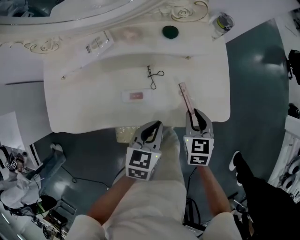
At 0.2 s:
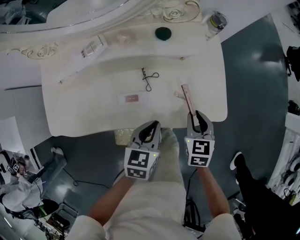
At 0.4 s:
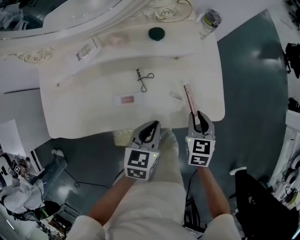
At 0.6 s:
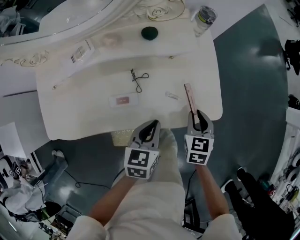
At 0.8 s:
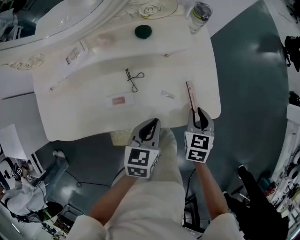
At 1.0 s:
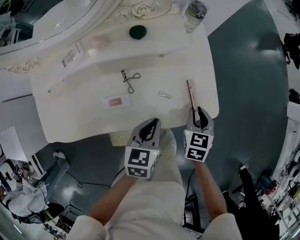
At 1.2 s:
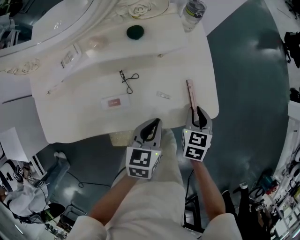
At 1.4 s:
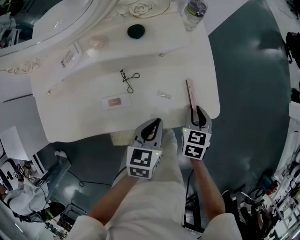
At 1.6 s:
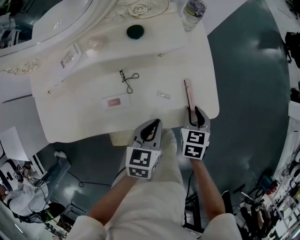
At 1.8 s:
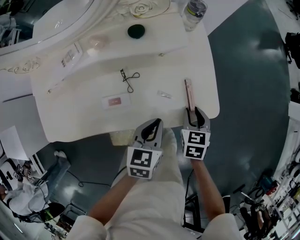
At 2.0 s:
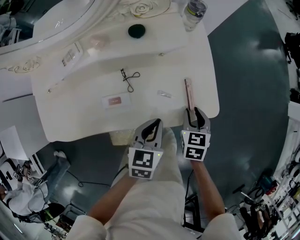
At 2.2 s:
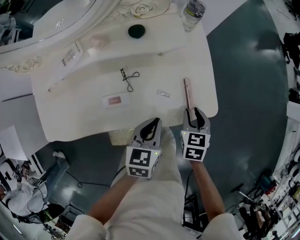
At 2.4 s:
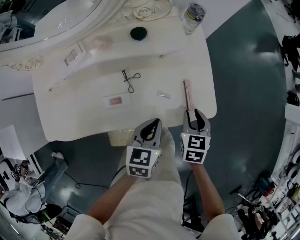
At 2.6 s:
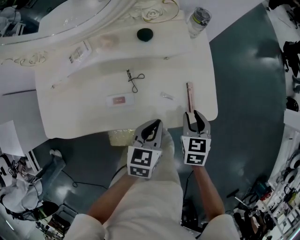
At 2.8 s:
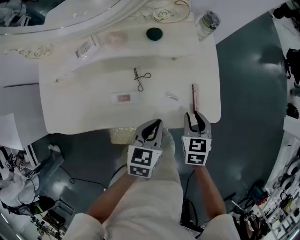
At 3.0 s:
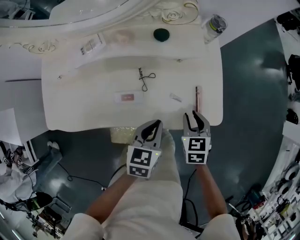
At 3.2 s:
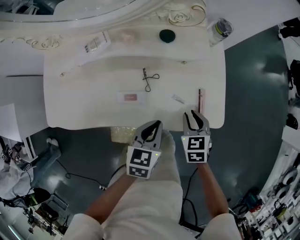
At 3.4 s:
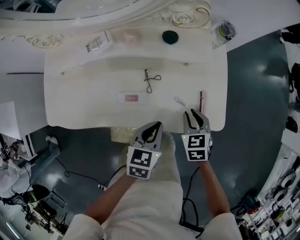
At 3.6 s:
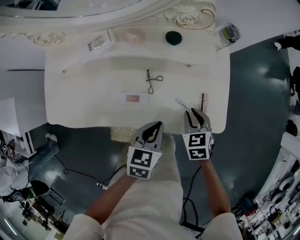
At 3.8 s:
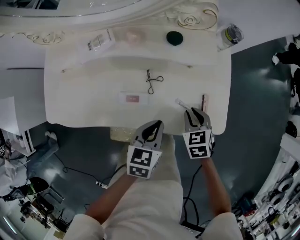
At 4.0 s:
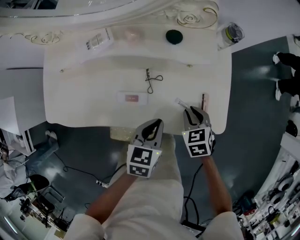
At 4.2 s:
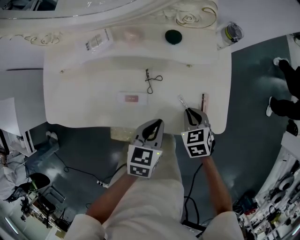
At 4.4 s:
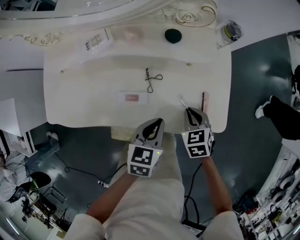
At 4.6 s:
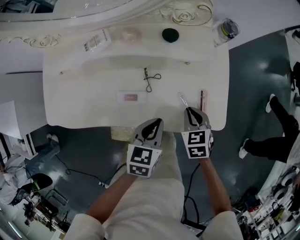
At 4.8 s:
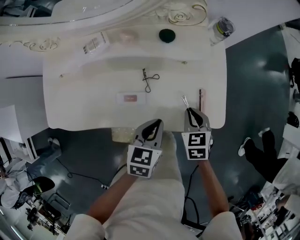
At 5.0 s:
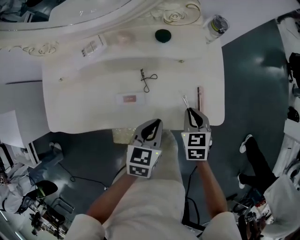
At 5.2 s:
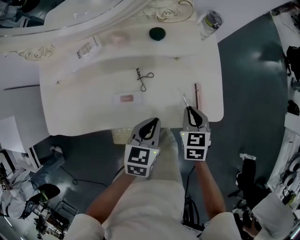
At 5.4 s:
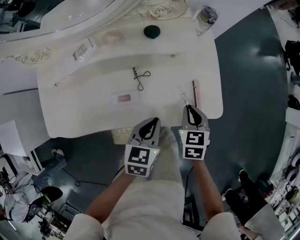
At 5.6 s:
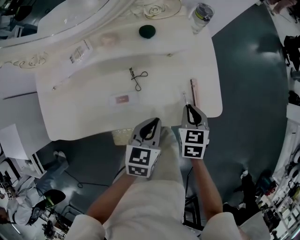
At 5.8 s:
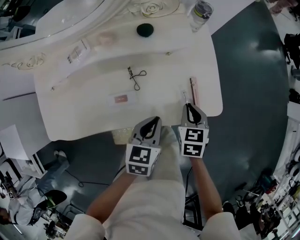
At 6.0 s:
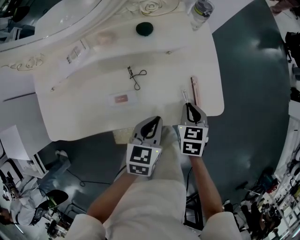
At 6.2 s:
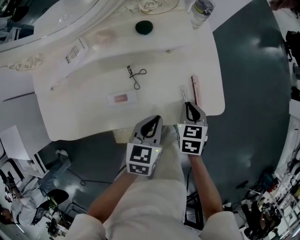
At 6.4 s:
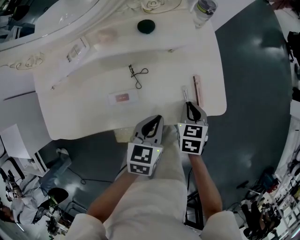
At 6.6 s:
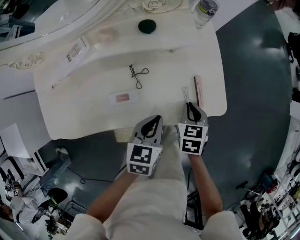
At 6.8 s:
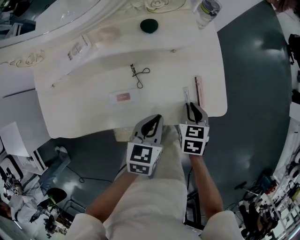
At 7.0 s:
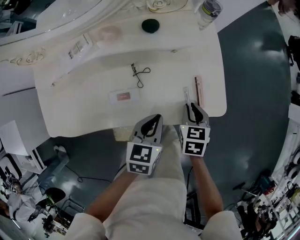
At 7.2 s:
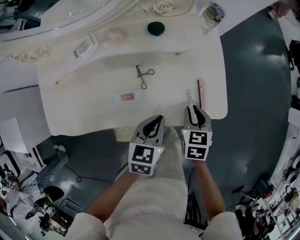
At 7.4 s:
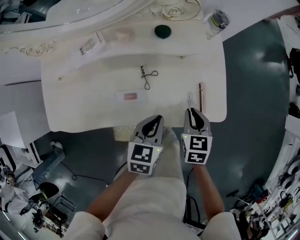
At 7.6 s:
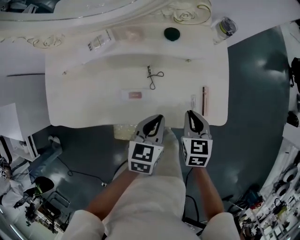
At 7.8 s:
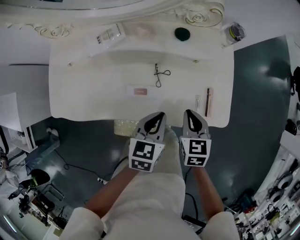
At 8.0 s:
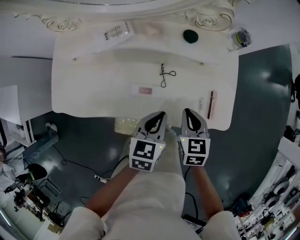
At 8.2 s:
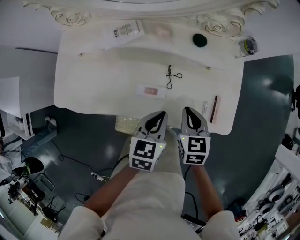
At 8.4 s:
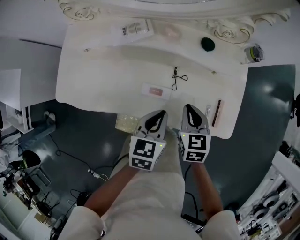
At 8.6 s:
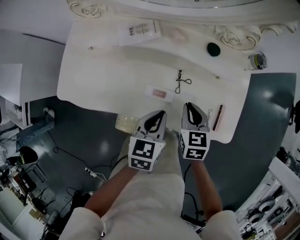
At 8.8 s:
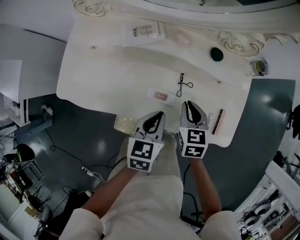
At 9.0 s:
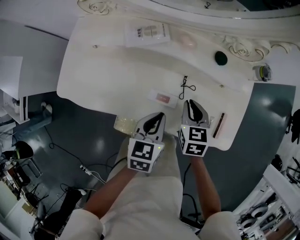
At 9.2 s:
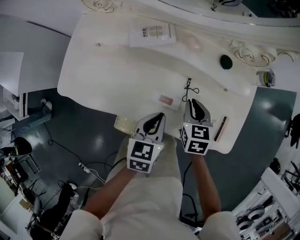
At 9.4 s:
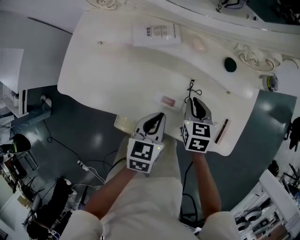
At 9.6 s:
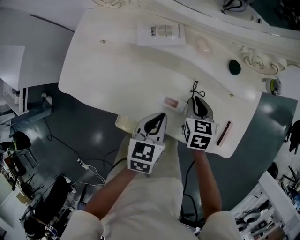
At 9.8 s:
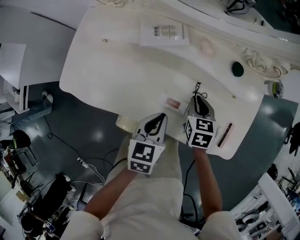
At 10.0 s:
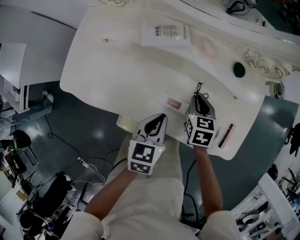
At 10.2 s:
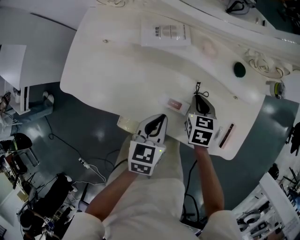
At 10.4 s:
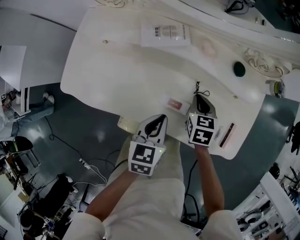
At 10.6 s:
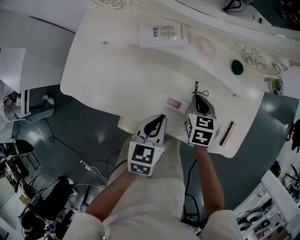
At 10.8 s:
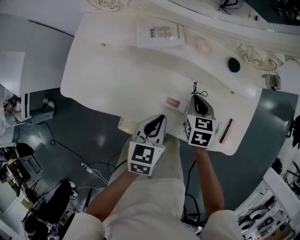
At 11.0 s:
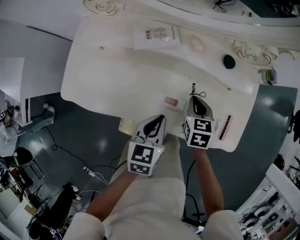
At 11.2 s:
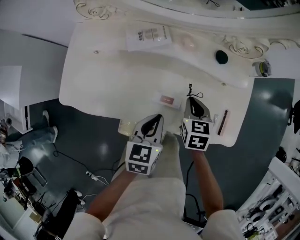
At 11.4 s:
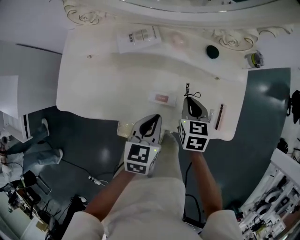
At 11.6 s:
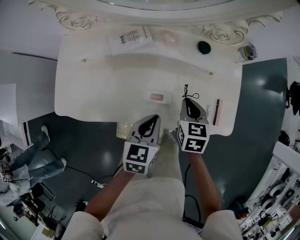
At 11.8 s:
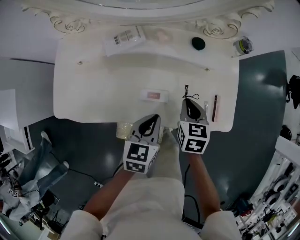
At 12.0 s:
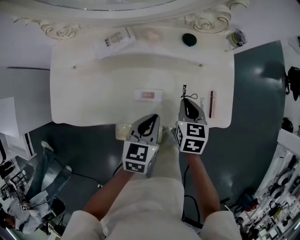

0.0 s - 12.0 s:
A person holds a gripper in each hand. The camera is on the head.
0.0 s - 1.6 s: The left gripper heads to the right, covering roughly 5 cm. The right gripper shifts about 10 cm to the right and downward.
1.6 s - 3.0 s: The right gripper travels to the left by roughly 5 cm.
3.0 s - 4.4 s: There are only small adjustments of the grippers.
4.4 s - 6.0 s: The right gripper changes its angle by about 30 degrees.
6.0 s - 7.6 s: The right gripper moves some 5 cm.
7.6 s - 9.0 s: The left gripper goes about 10 cm to the left. Meanwhile the right gripper is displaced to the left and forward by approximately 15 cm.
9.0 s - 10.4 s: The right gripper changes place by roughly 5 cm.
10.4 s - 12.0 s: The right gripper moves backward, to the right and upward, approximately 10 cm; the left gripper moves to the right, about 5 cm.

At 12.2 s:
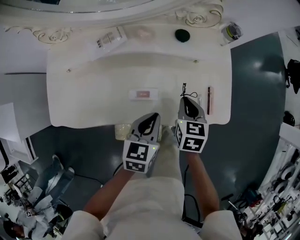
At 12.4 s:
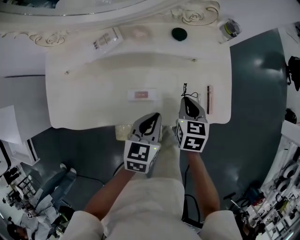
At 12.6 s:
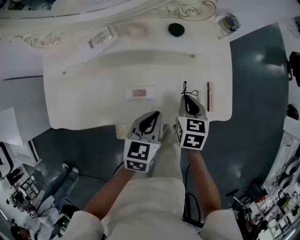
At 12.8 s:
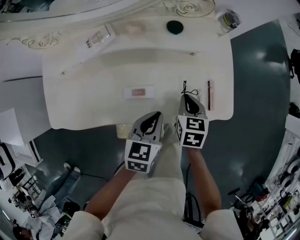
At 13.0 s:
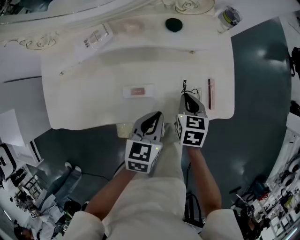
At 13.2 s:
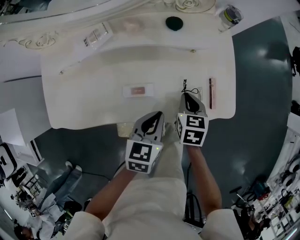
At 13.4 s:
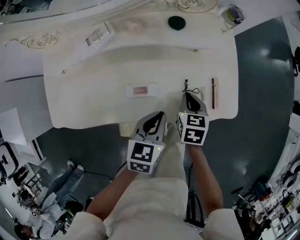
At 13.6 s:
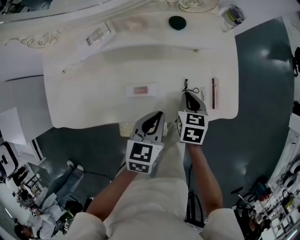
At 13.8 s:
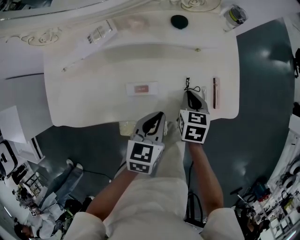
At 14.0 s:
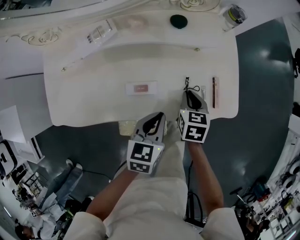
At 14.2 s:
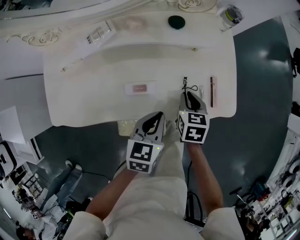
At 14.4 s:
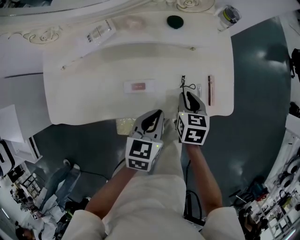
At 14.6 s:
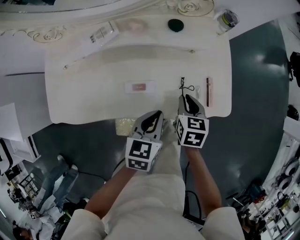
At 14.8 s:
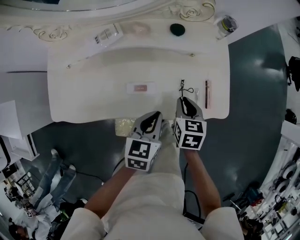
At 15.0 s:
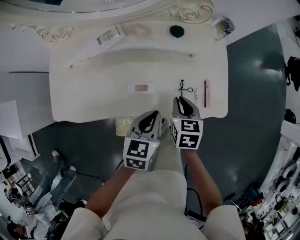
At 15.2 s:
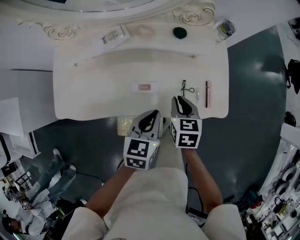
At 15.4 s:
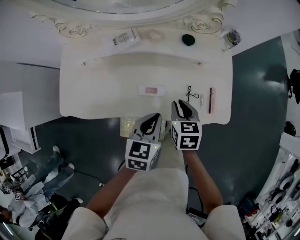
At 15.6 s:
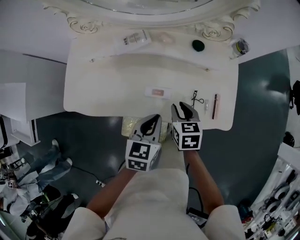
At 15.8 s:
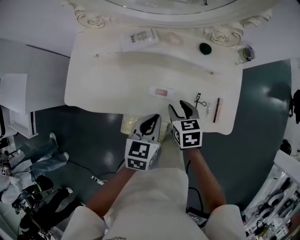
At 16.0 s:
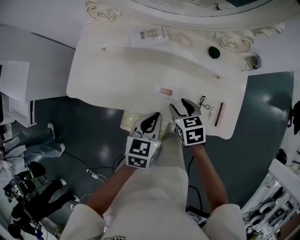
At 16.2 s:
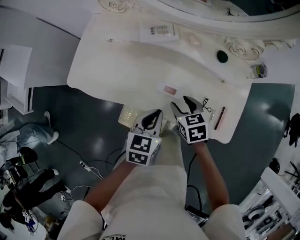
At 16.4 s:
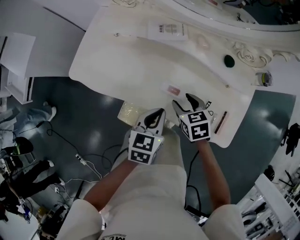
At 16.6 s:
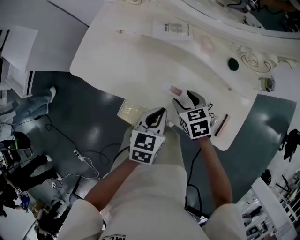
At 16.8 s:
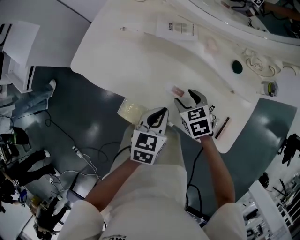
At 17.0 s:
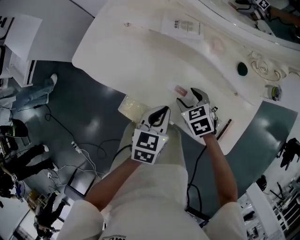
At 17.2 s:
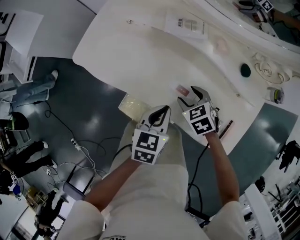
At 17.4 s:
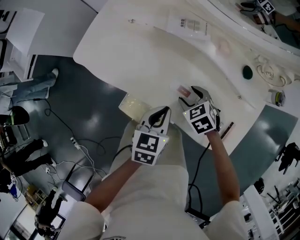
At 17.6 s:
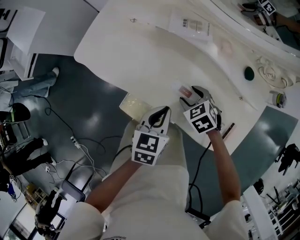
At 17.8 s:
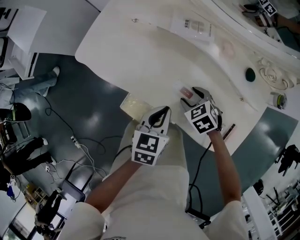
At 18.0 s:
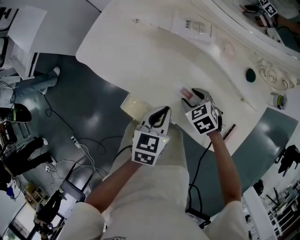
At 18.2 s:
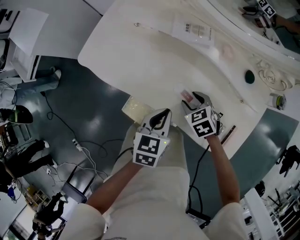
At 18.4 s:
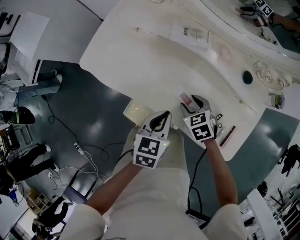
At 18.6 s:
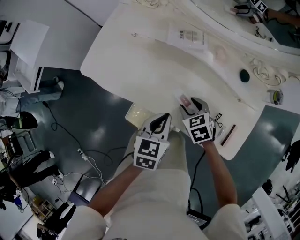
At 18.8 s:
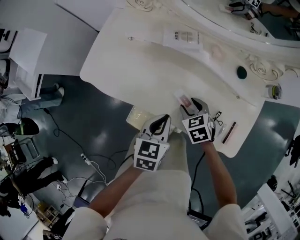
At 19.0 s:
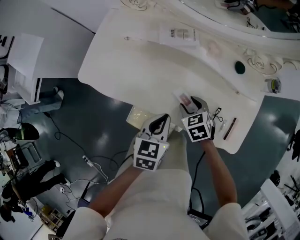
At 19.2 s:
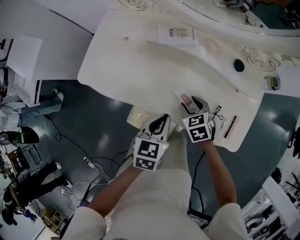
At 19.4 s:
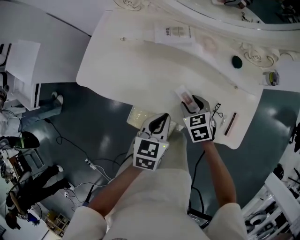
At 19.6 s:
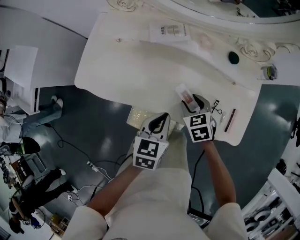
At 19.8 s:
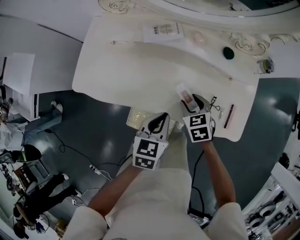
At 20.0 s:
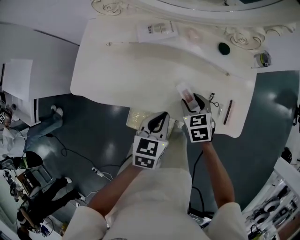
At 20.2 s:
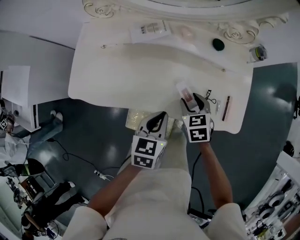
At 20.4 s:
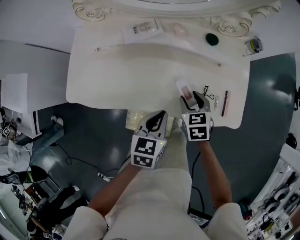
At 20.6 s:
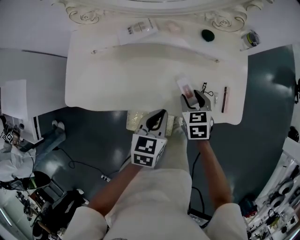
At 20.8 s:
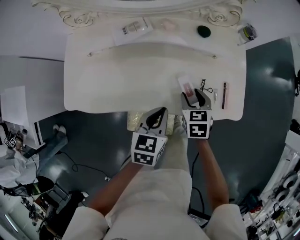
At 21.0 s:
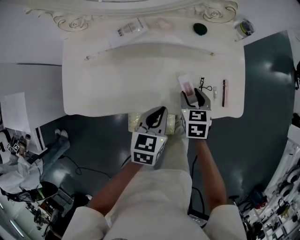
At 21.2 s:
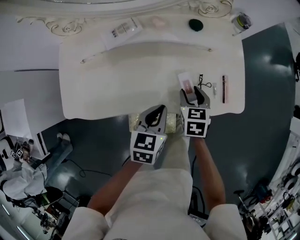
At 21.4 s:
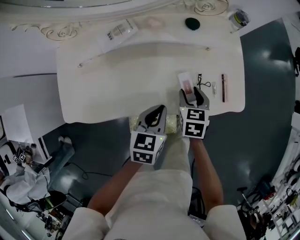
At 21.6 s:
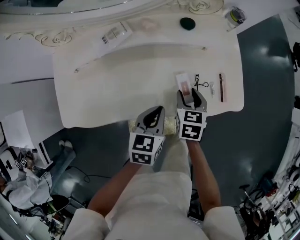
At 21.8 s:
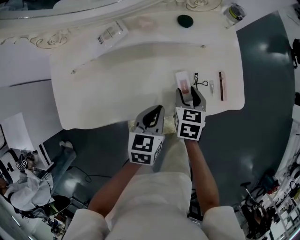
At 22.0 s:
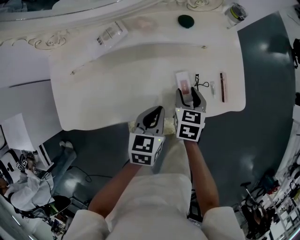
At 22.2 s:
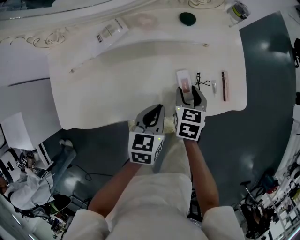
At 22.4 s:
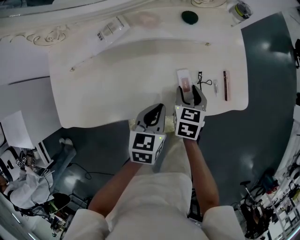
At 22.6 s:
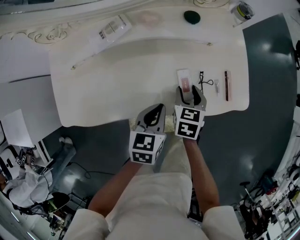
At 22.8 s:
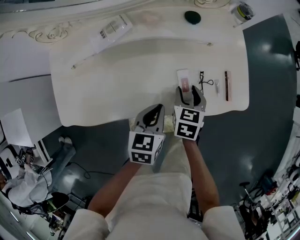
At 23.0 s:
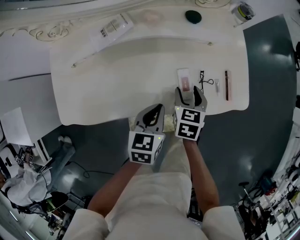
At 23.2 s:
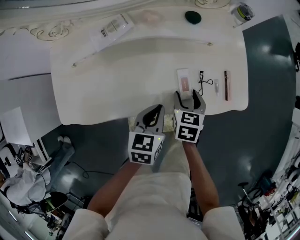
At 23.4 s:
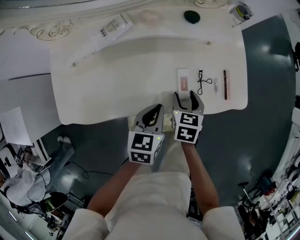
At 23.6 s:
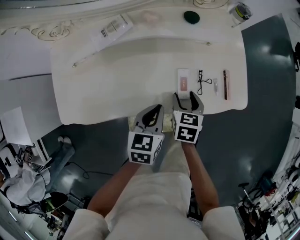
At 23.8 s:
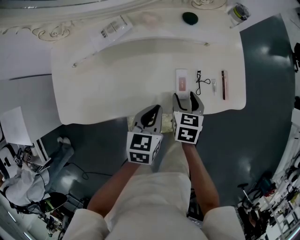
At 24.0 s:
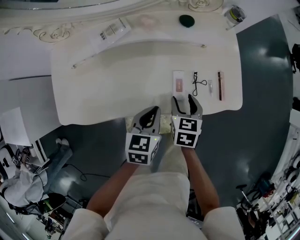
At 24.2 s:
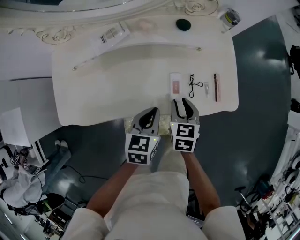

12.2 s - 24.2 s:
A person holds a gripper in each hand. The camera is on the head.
12.2 s - 13.8 s: The right gripper moves downward, approximately 5 cm.
13.8 s - 15.2 s: Both grippers travel together upward, some 5 cm.
15.2 s - 16.6 s: The left gripper changes place by roughly 10 cm, and swivels some 20 degrees, while the right gripper moves some 10 cm, rotates about 50 degrees, and opens its fingers.
18.2 s - 19.8 s: The right gripper ends up about 5 cm from where it was, and turns by some 30 degrees.
19.8 s - 21.2 s: The right gripper changes place by about 5 cm, and turns by about 40 degrees.
21.2 s - 22.6 s: The grippers stay close to where they were, moving slightly.
22.6 s - 24.2 s: The right gripper shifts by about 5 cm.
